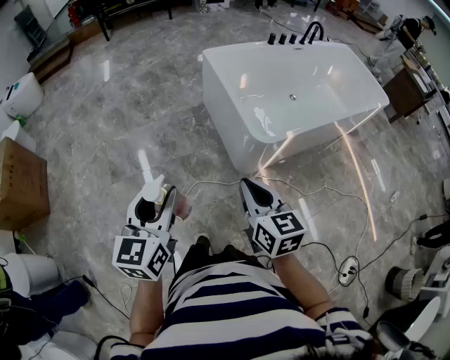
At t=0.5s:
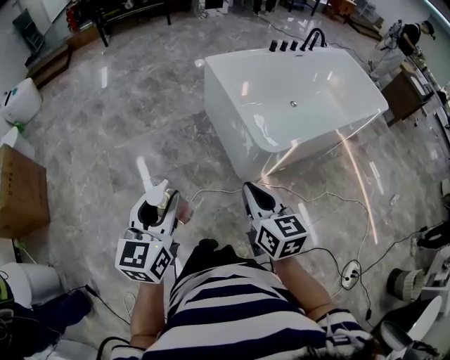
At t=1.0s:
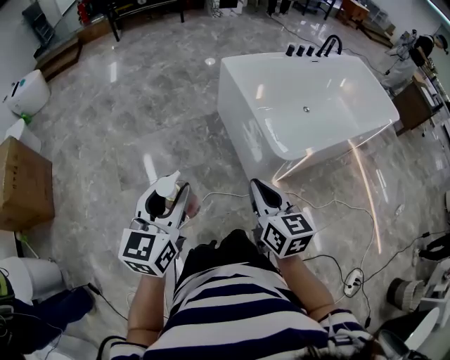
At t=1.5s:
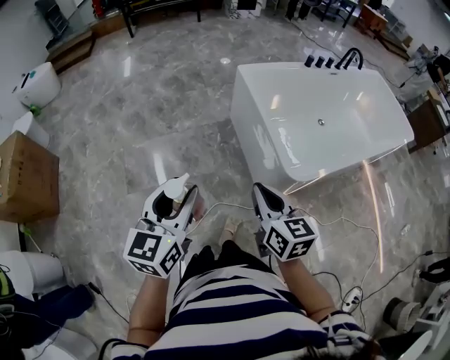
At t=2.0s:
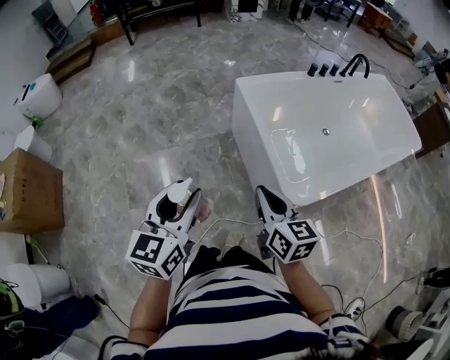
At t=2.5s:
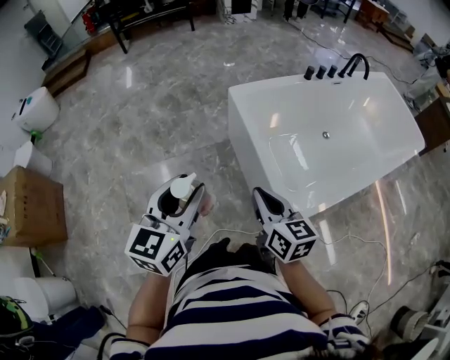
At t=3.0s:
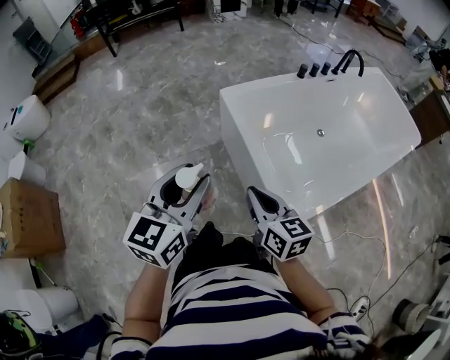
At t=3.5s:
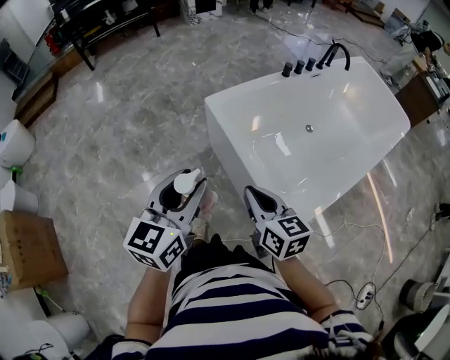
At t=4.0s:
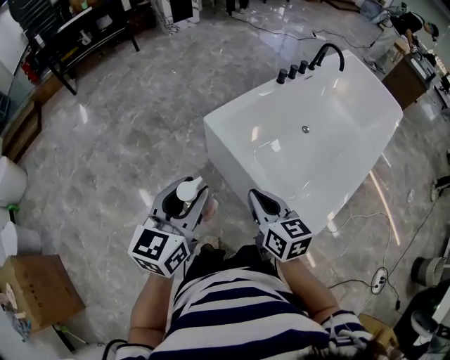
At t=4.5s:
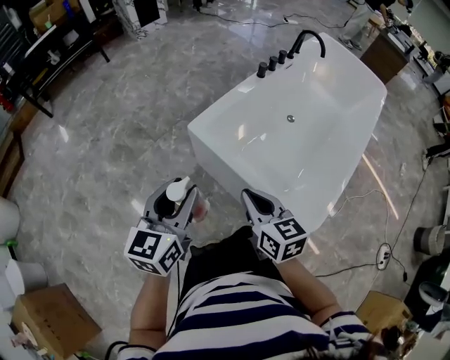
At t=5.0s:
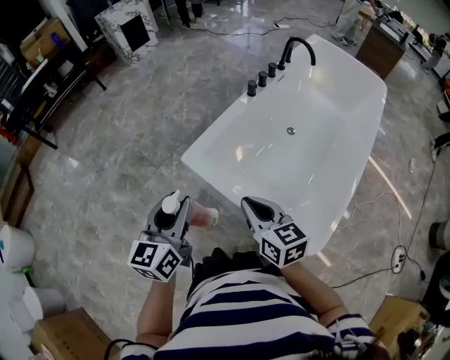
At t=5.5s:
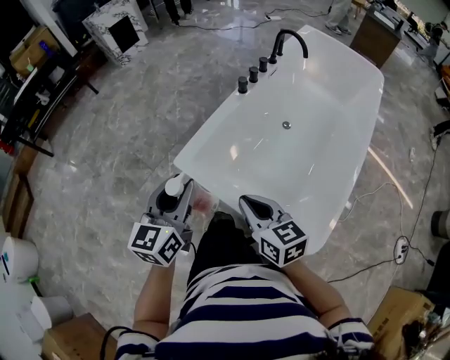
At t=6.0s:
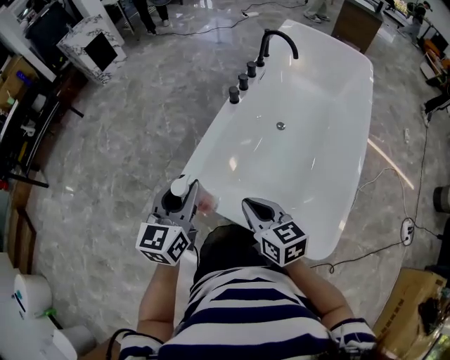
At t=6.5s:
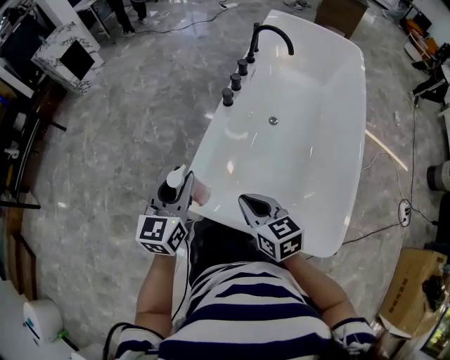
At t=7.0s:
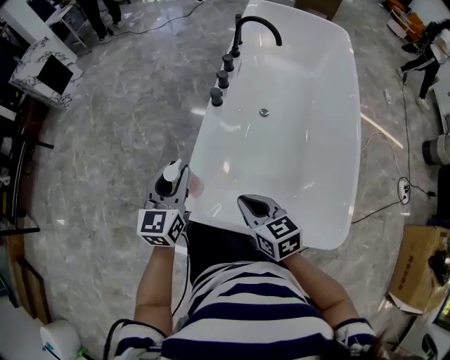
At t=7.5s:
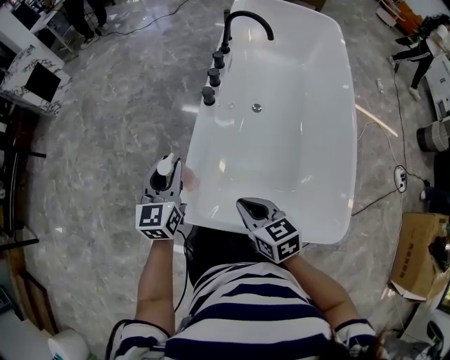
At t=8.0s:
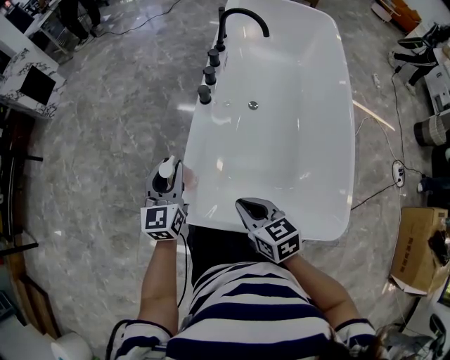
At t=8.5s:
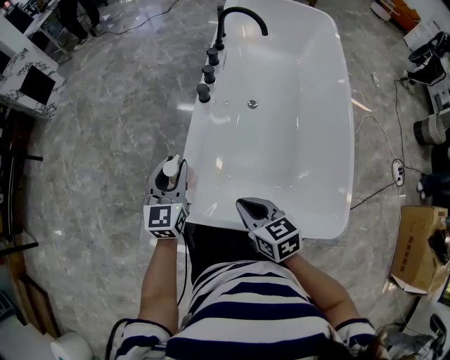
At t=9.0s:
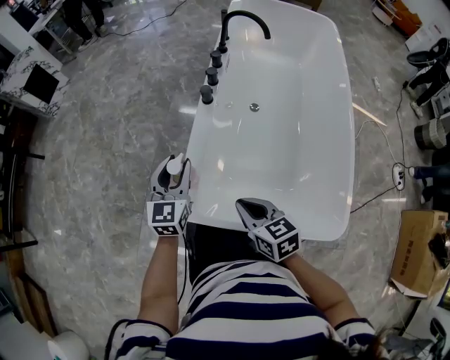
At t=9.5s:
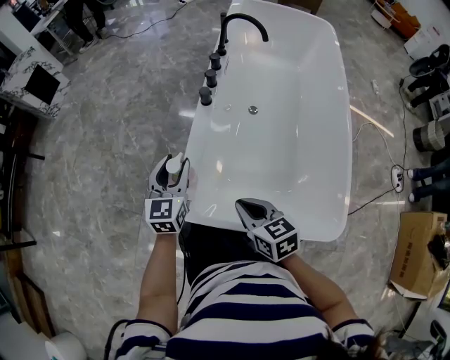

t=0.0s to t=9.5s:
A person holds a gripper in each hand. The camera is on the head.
t=0.0s to t=2.0s: The grippers both shift forward by approximately 25 cm.
t=2.0s to t=4.0s: The grippers both shift forward by approximately 25 cm. The left gripper swivels some 20 degrees.
t=4.0s to t=5.5s: The right gripper shifts approximately 10 cm forward. The left gripper moves forward, approximately 20 cm.
t=5.5s to t=7.5s: The left gripper is displaced forward by some 30 cm. Meanwhile the right gripper is displaced forward and downward by approximately 15 cm, and turns by roughly 20 degrees.
t=7.5s to t=9.5s: There are only small adjustments of the grippers.

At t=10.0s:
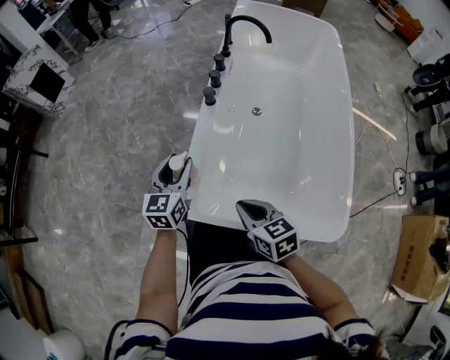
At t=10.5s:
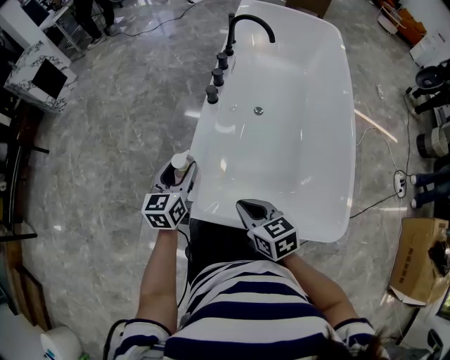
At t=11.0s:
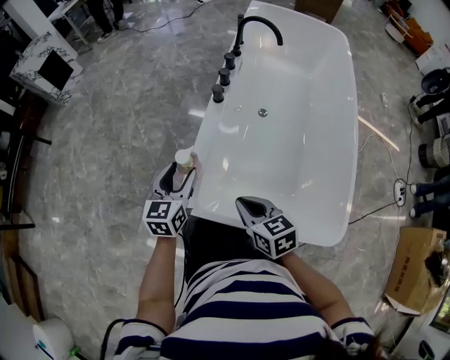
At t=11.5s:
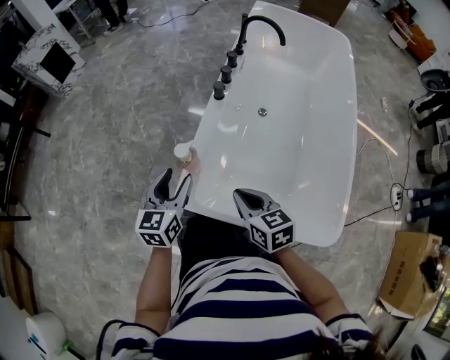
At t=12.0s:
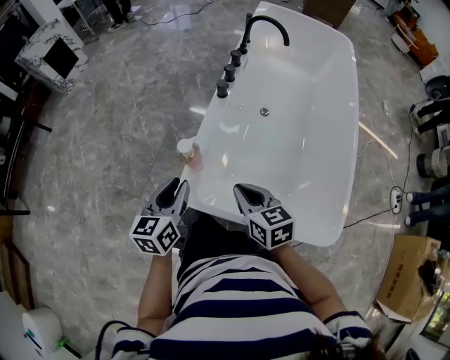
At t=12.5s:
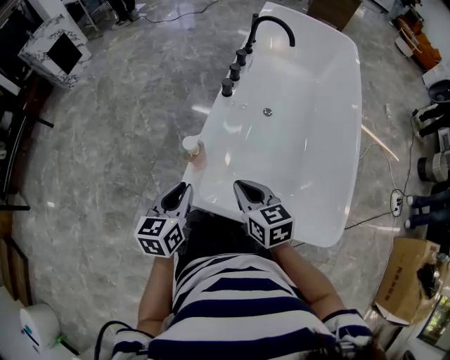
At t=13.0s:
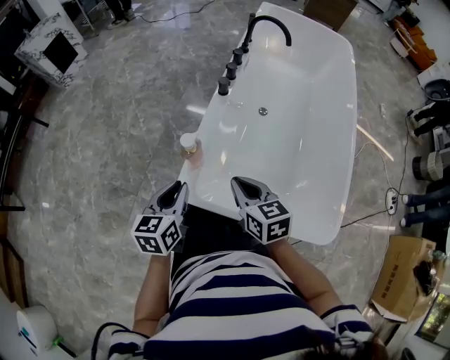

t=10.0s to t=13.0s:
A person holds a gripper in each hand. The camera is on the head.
t=10.0s to t=11.5s: The left gripper moves backward, approximately 5 cm.
t=11.5s to t=13.0s: The left gripper is displaced backward by about 5 cm, and closes up.

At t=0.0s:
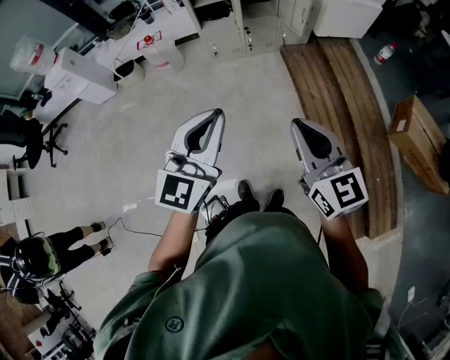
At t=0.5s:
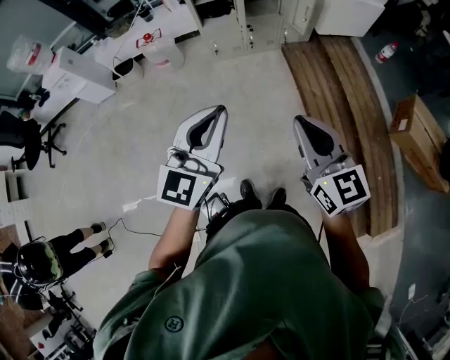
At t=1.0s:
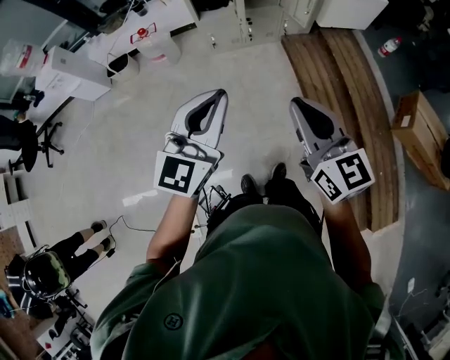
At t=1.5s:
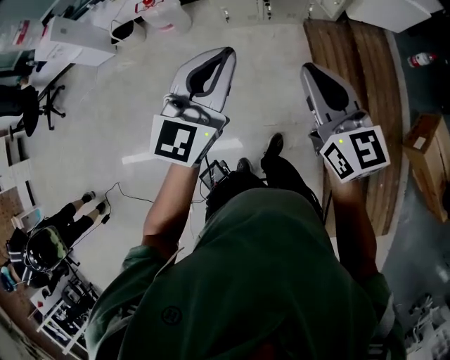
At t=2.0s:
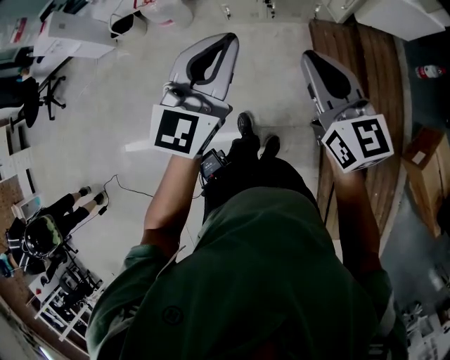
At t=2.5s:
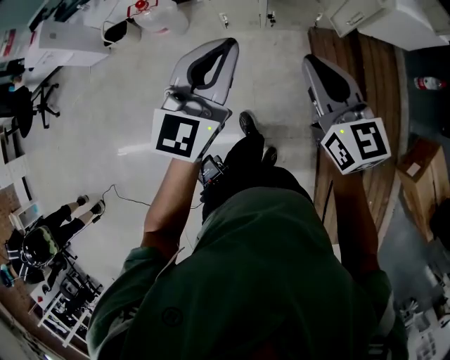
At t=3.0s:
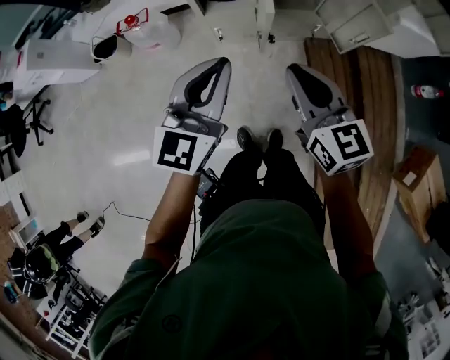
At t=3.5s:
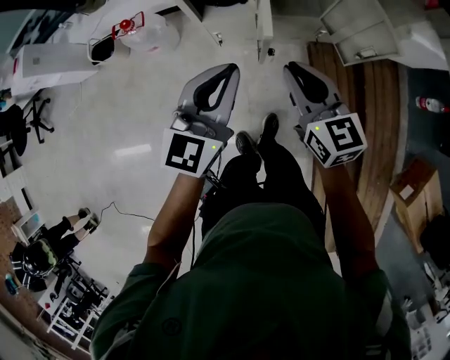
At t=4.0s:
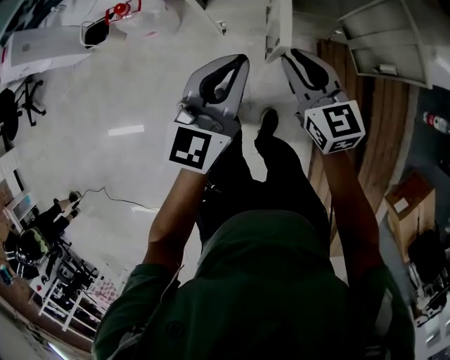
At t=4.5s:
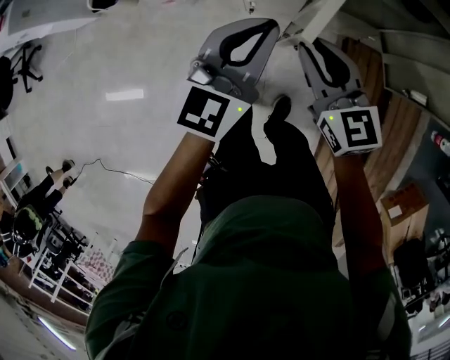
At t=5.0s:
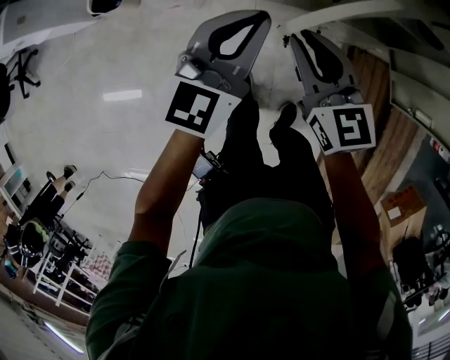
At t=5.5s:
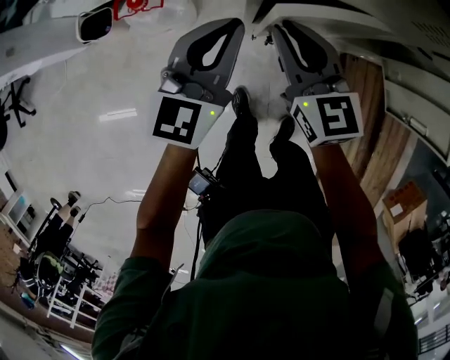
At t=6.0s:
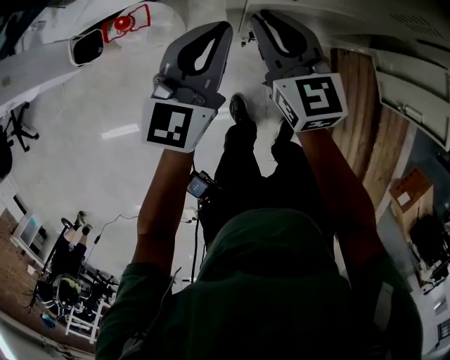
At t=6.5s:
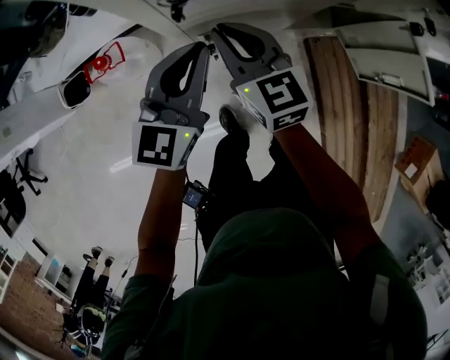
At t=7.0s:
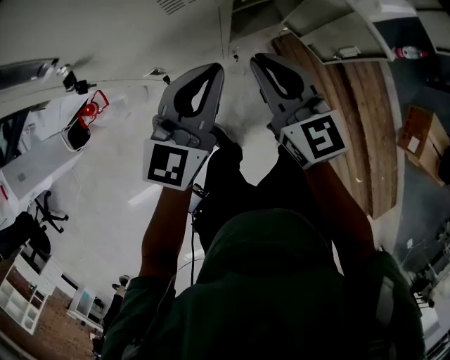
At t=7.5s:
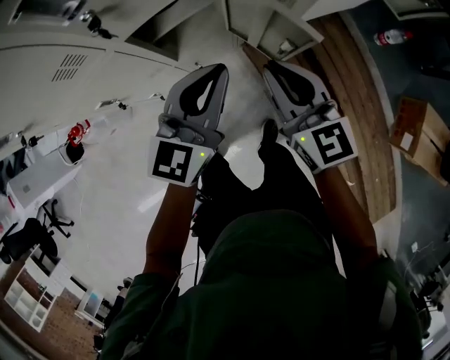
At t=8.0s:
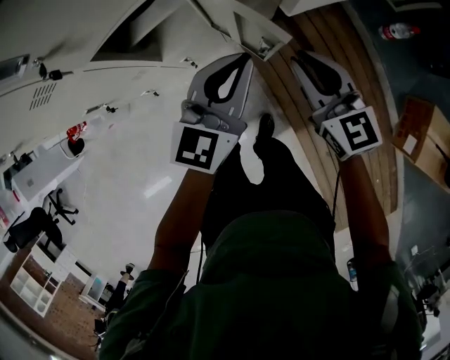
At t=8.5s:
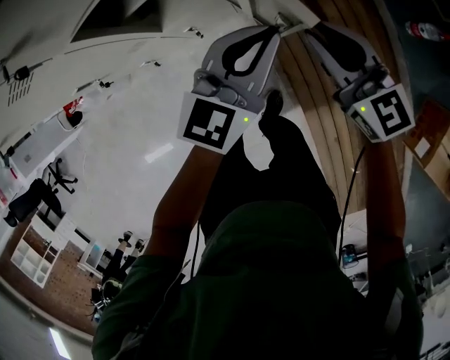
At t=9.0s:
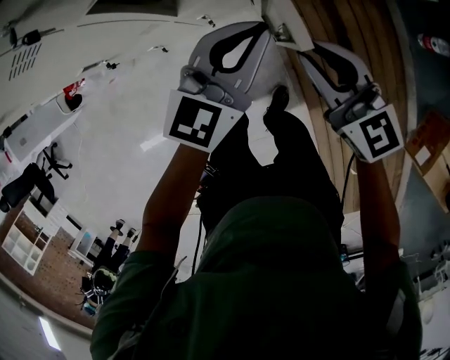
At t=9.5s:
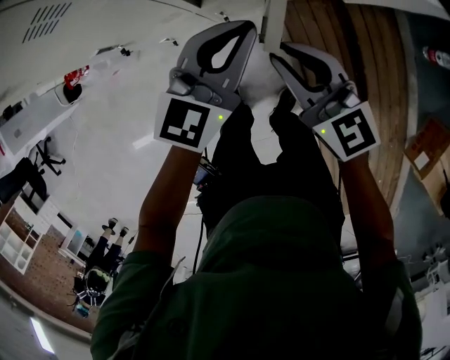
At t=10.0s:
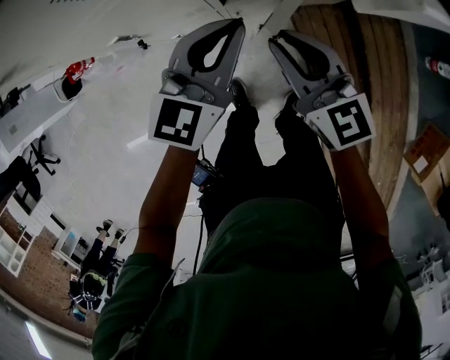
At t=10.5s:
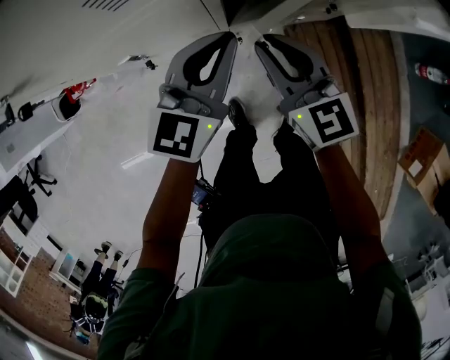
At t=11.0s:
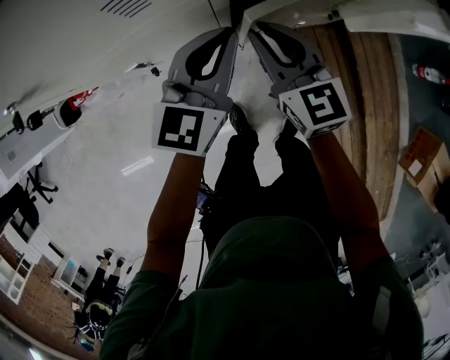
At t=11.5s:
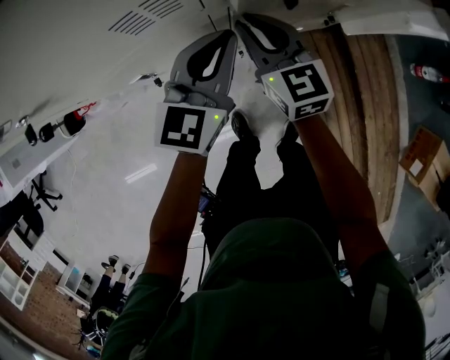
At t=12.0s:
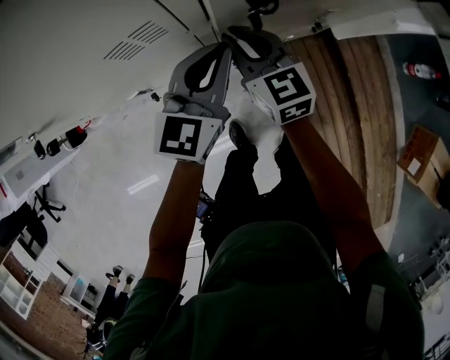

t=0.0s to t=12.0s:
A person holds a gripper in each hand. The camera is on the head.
t=0.0s to t=2.0s: The grippers both shift forward by about 30 cm.
t=2.0s to t=4.0s: Both grippers travel together forward and downward, approximately 40 cm.
t=4.0s to t=6.0s: Both grippers move forward and to the left, some 30 cm.
t=6.0s to t=8.0s: The pair of grippers is taken to the right, roughly 60 cm. The left gripper changes its angle by about 30 degrees.
t=8.0s to t=10.0s: Both grippers move to the left, some 25 cm.
t=10.0s to t=12.0s: The left gripper travels forward by roughly 10 cm. The right gripper moves forward and to the left, approximately 15 cm.

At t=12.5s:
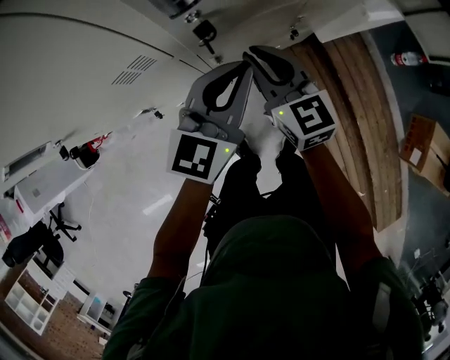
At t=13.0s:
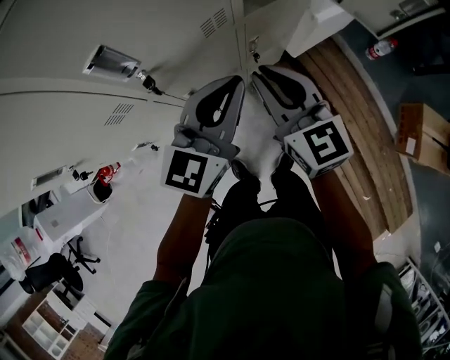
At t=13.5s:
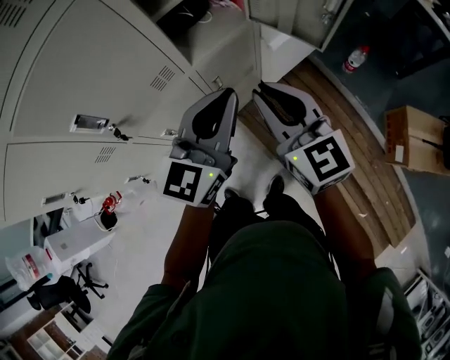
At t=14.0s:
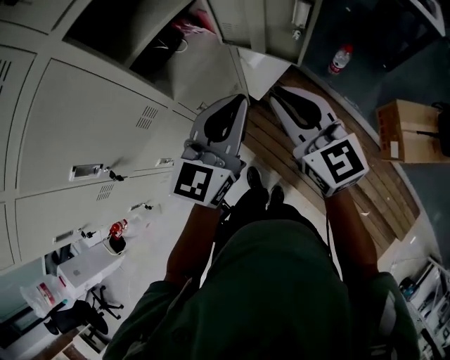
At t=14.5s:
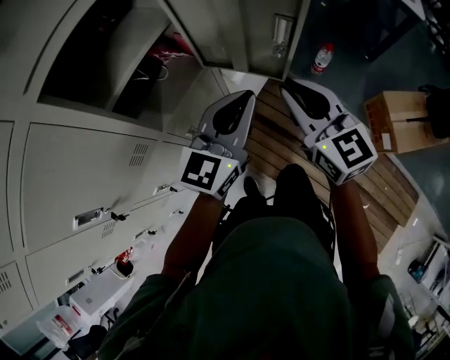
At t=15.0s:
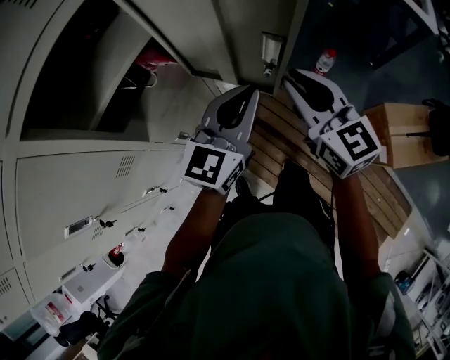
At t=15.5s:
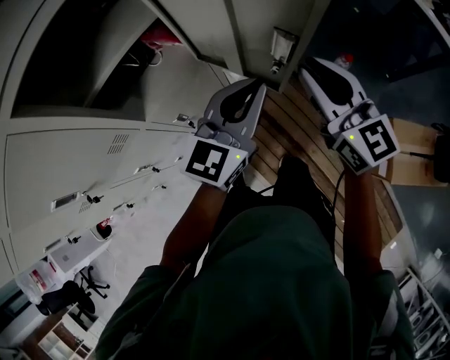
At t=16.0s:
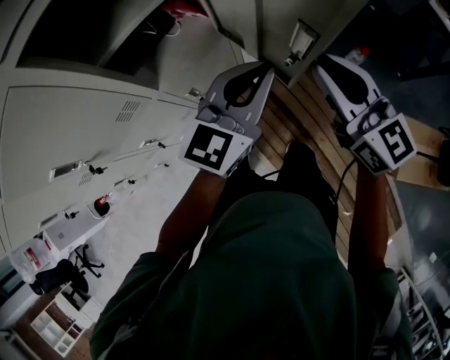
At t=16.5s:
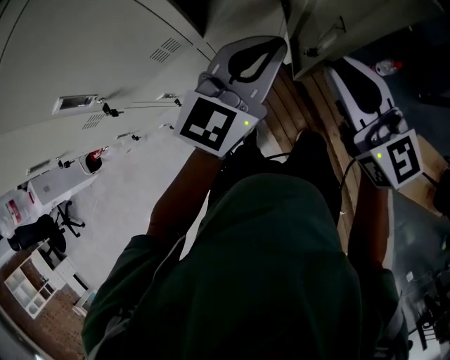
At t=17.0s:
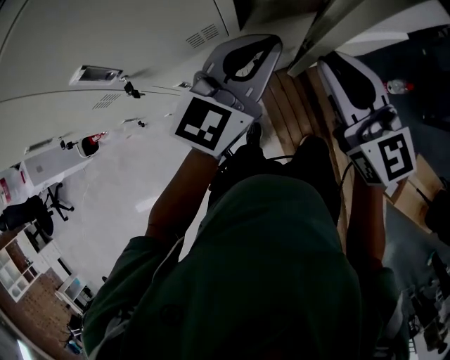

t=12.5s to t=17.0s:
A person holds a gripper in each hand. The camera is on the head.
t=12.5s to t=14.5s: The pair of grippers is taken some 40 cm. The right gripper changes its angle by roughly 30 degrees, while the left gripper changes its angle by roughly 30 degrees.
t=14.5s to t=17.0s: The right gripper ends up approximately 20 cm from where it was, and changes its angle by approximately 30 degrees; the left gripper moves some 20 cm, and rotates roughly 30 degrees.
